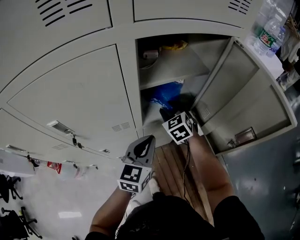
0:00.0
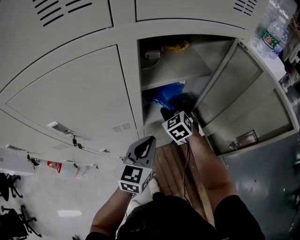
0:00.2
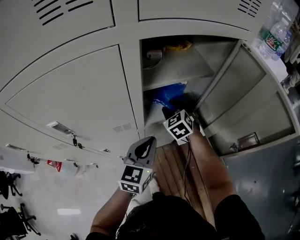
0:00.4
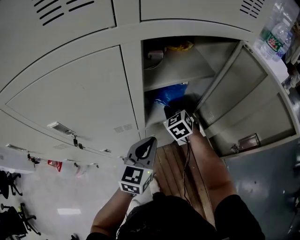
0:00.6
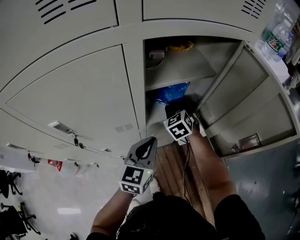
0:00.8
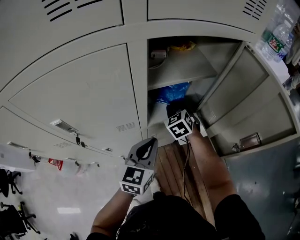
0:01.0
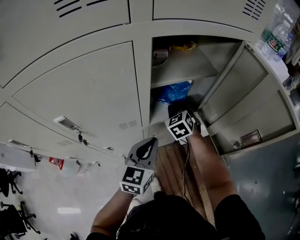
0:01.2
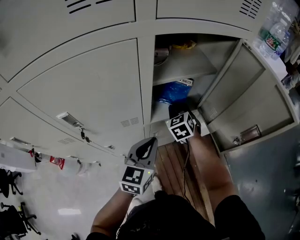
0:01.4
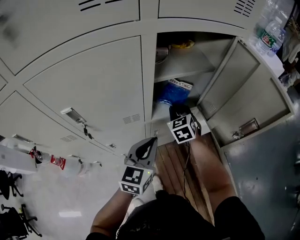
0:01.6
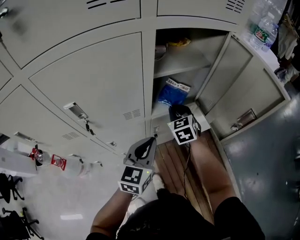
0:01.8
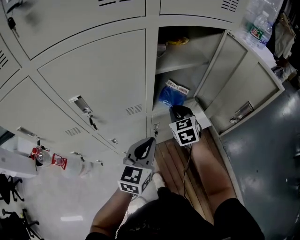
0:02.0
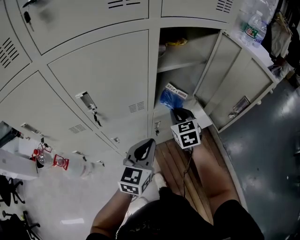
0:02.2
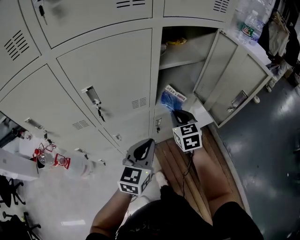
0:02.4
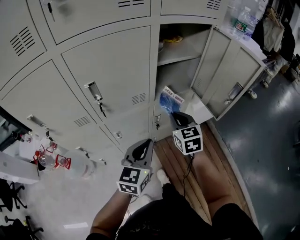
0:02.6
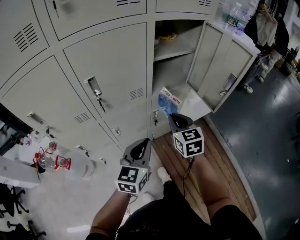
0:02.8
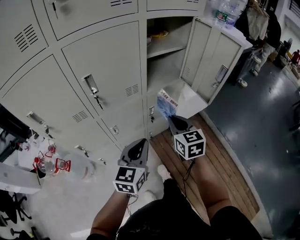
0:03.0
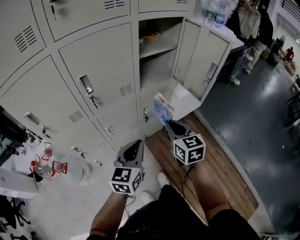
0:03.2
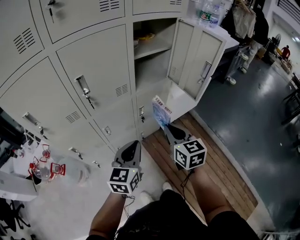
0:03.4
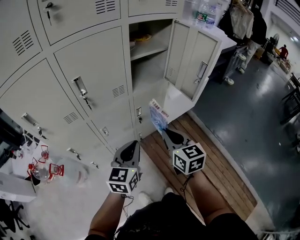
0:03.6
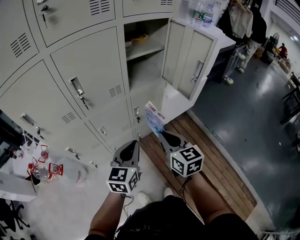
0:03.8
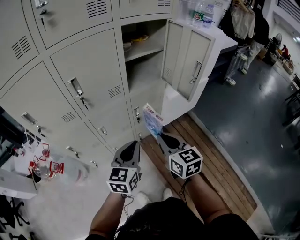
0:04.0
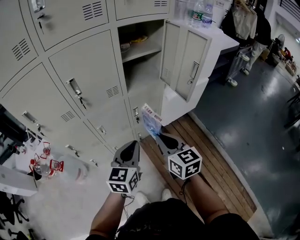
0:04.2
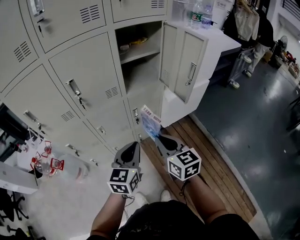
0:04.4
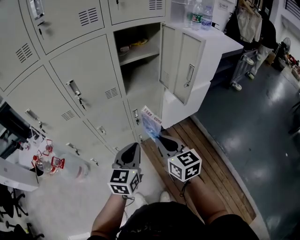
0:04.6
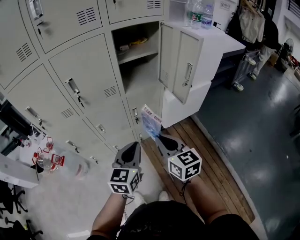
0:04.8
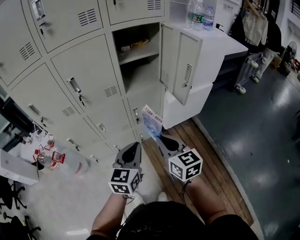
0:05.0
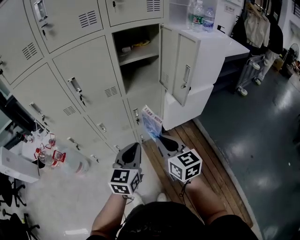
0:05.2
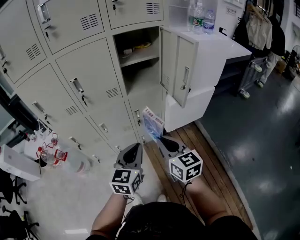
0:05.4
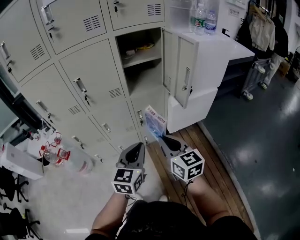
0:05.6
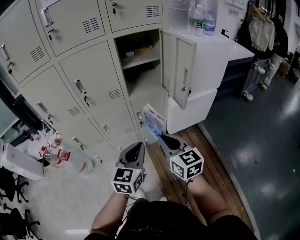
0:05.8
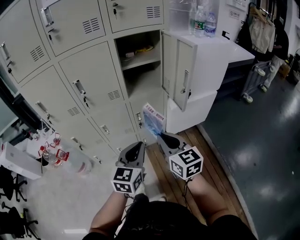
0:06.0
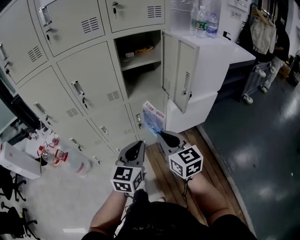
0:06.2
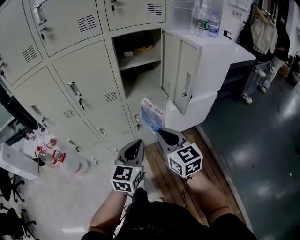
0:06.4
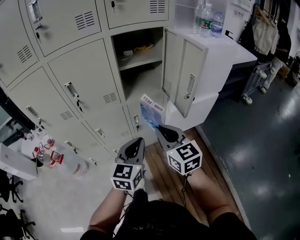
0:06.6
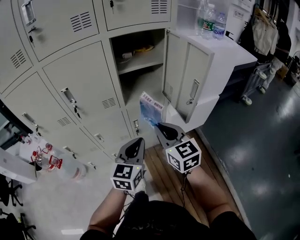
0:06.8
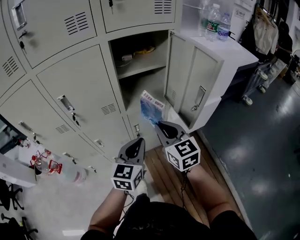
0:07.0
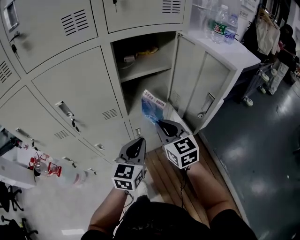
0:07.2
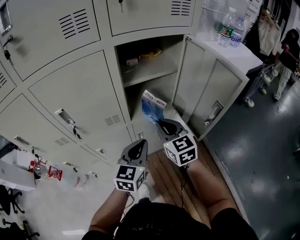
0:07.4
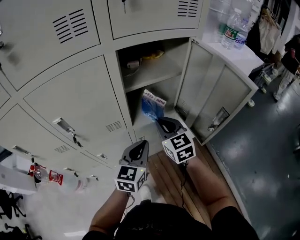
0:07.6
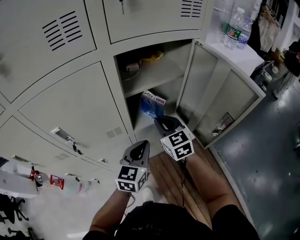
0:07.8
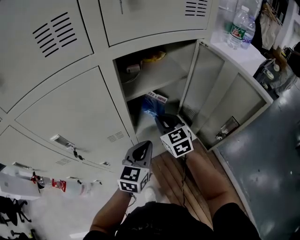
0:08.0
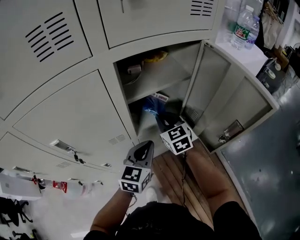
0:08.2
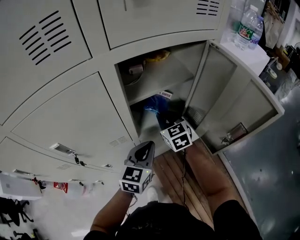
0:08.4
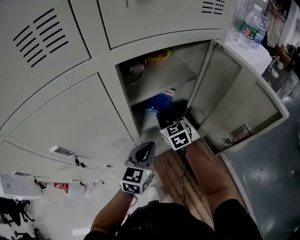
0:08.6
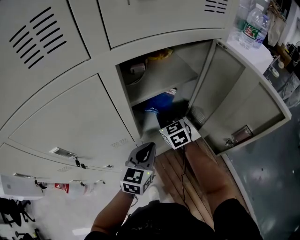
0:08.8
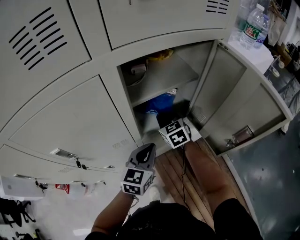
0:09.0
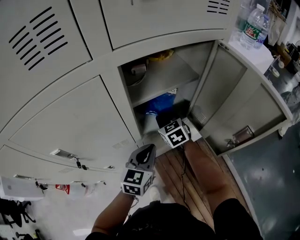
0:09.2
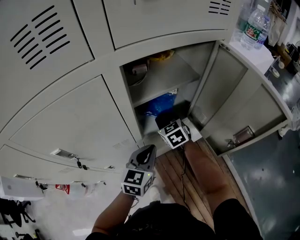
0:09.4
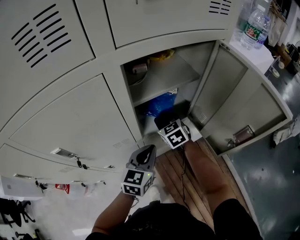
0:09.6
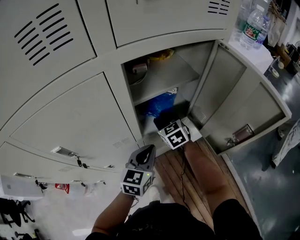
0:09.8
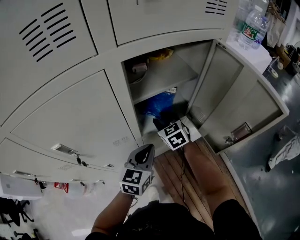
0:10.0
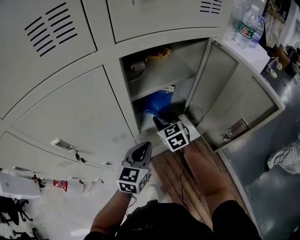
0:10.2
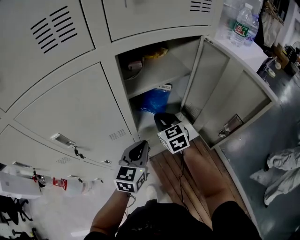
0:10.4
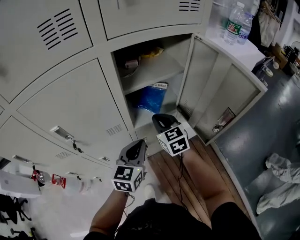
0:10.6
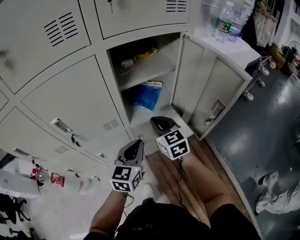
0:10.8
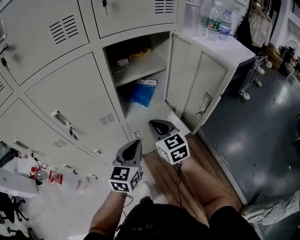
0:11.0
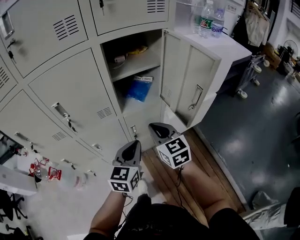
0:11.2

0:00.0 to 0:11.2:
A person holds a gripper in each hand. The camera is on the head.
0:00.0 to 0:01.6: The left gripper ends up about 5 cm from where it was. The right gripper closes up.
0:01.6 to 0:03.2: Both grippers travel together backward, about 30 cm. The right gripper changes its angle by approximately 30 degrees.
0:03.2 to 0:04.8: The left gripper moves to the right, approximately 10 cm, while the right gripper shifts about 10 cm backward and to the right.
0:04.8 to 0:06.4: The right gripper moves about 5 cm; the left gripper moves to the right, some 5 cm.
0:06.4 to 0:08.0: The grippers both shift forward by about 30 cm.
0:08.0 to 0:09.6: The right gripper travels downward and forward by some 10 cm, and opens up.
0:09.6 to 0:11.2: The right gripper heads backward and upward, covering about 30 cm, and closes up. The left gripper goes some 15 cm backward.

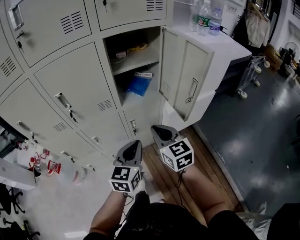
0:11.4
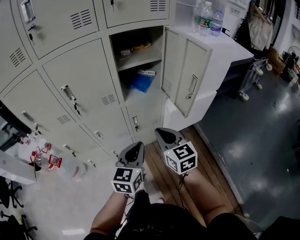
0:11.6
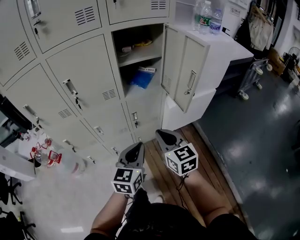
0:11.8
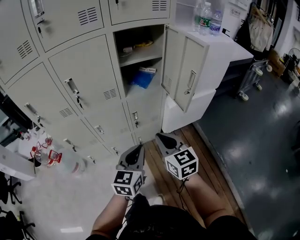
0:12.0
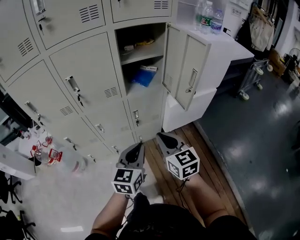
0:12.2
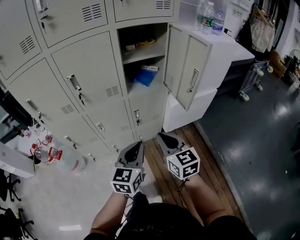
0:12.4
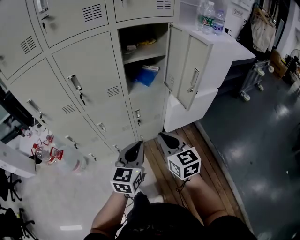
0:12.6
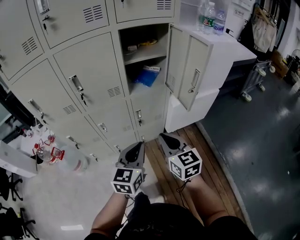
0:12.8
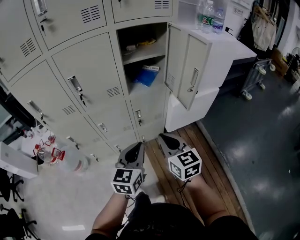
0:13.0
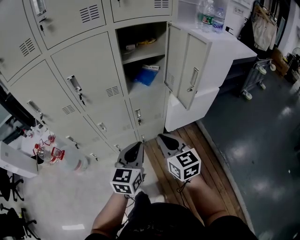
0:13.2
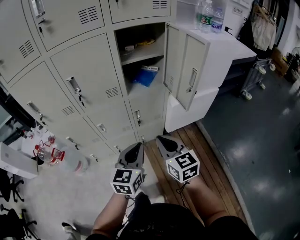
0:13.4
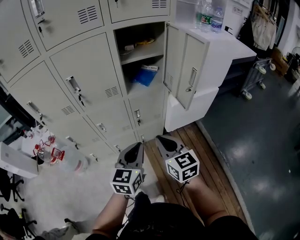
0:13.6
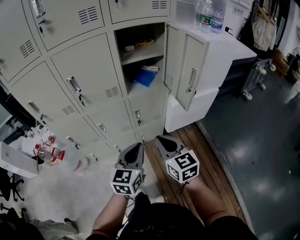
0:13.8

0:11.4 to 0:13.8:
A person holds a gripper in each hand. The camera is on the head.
0:11.4 to 0:12.6: Both grippers move backward, approximately 10 cm.
0:12.6 to 0:13.8: Both grippers stay about where they are.

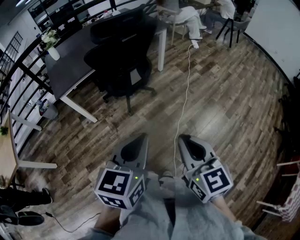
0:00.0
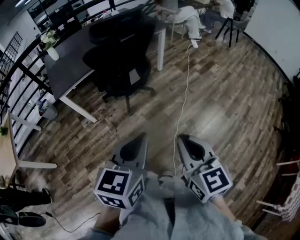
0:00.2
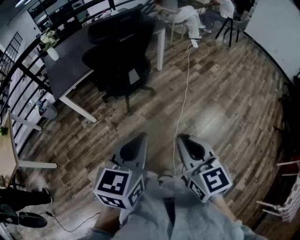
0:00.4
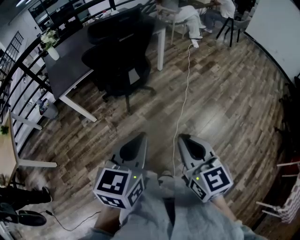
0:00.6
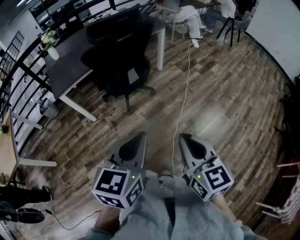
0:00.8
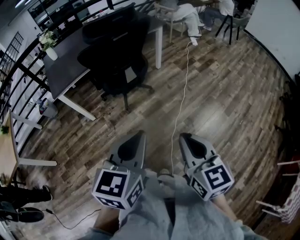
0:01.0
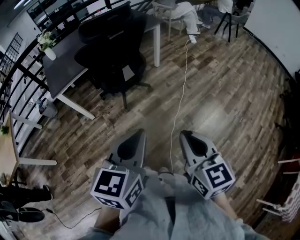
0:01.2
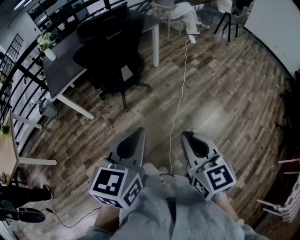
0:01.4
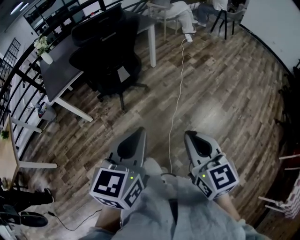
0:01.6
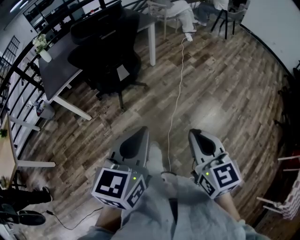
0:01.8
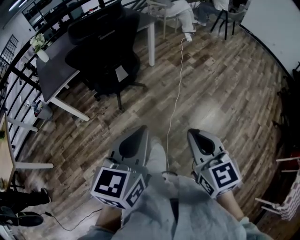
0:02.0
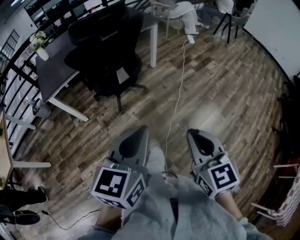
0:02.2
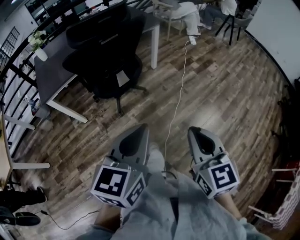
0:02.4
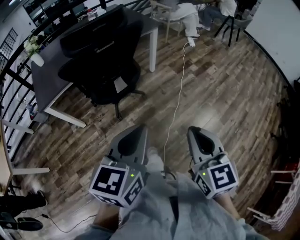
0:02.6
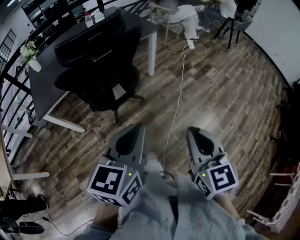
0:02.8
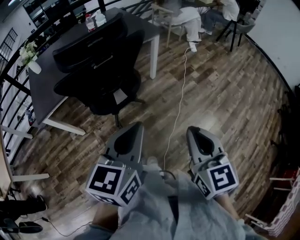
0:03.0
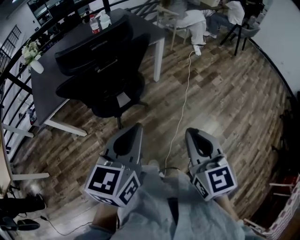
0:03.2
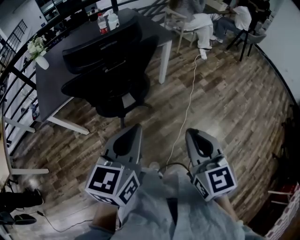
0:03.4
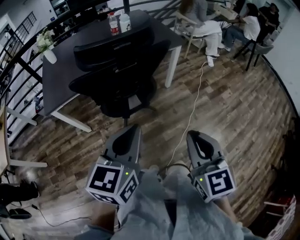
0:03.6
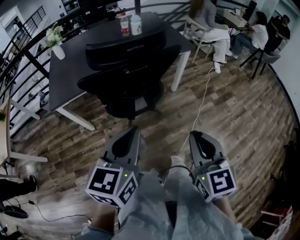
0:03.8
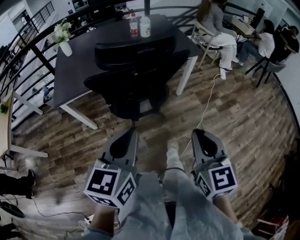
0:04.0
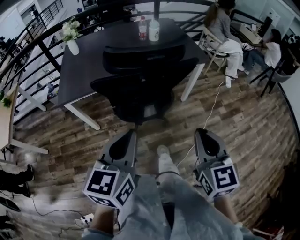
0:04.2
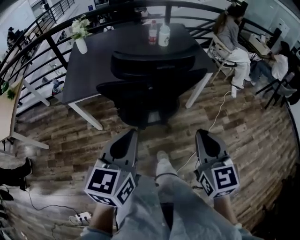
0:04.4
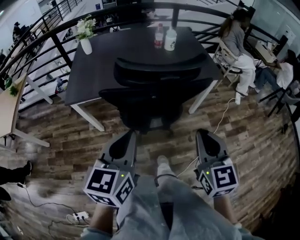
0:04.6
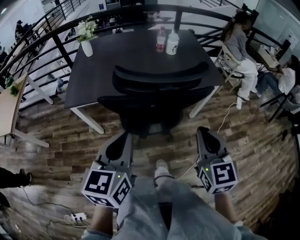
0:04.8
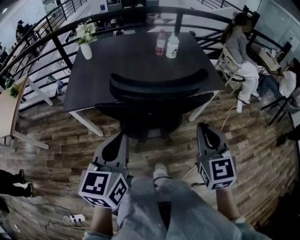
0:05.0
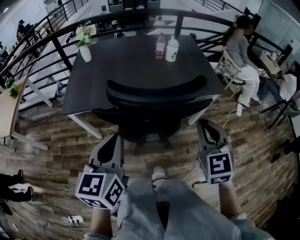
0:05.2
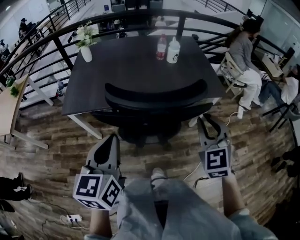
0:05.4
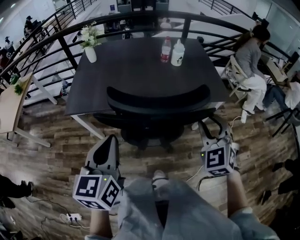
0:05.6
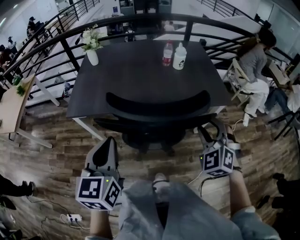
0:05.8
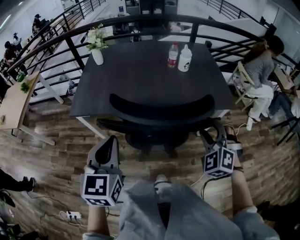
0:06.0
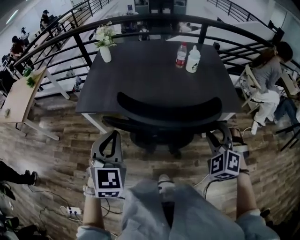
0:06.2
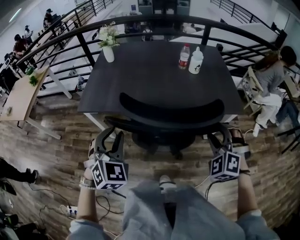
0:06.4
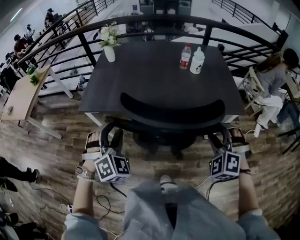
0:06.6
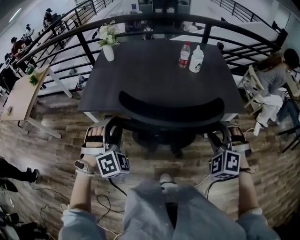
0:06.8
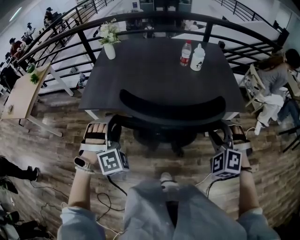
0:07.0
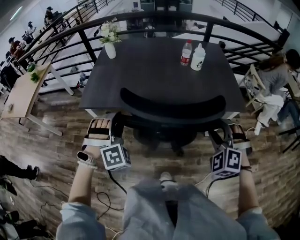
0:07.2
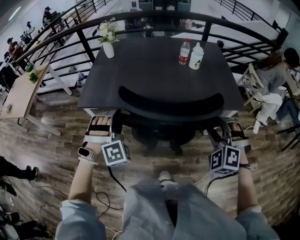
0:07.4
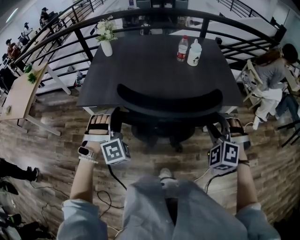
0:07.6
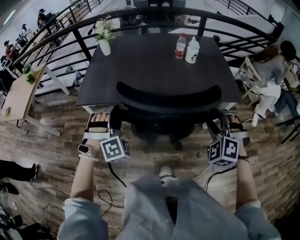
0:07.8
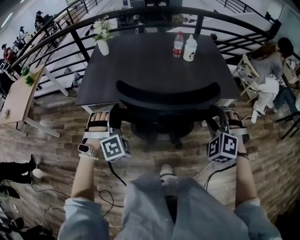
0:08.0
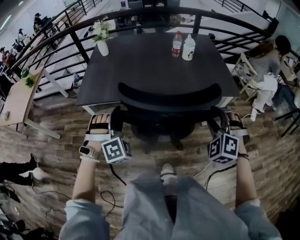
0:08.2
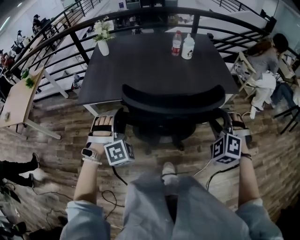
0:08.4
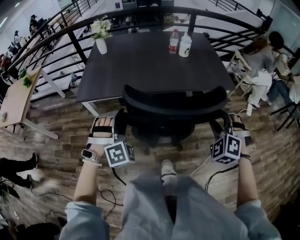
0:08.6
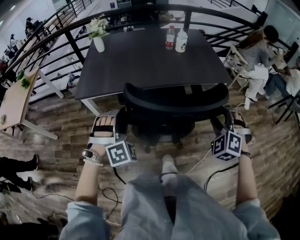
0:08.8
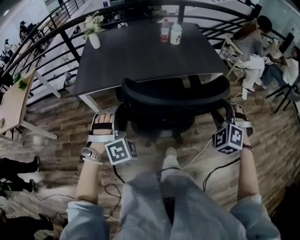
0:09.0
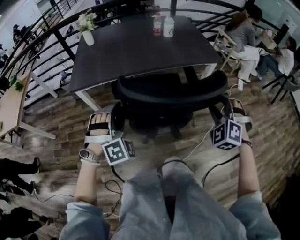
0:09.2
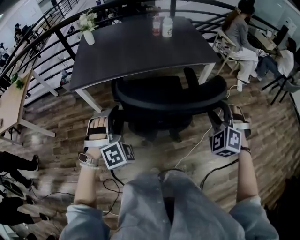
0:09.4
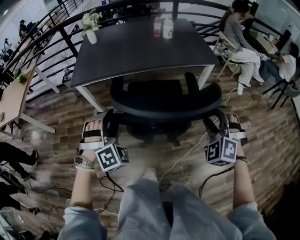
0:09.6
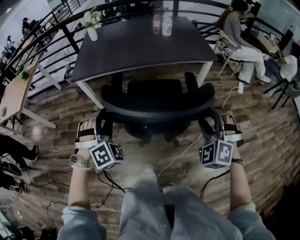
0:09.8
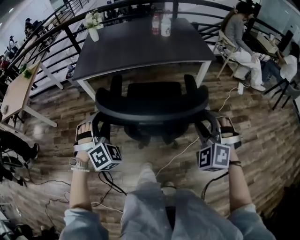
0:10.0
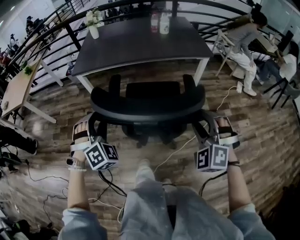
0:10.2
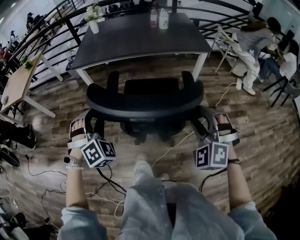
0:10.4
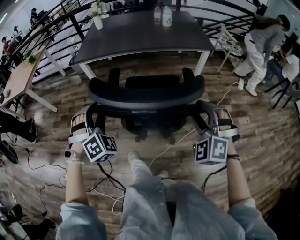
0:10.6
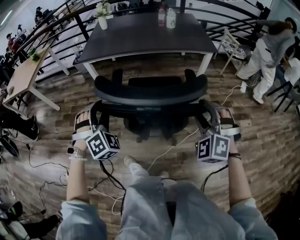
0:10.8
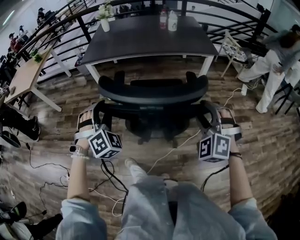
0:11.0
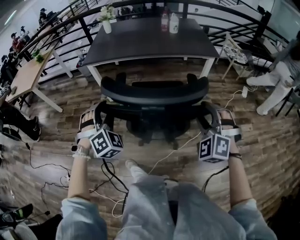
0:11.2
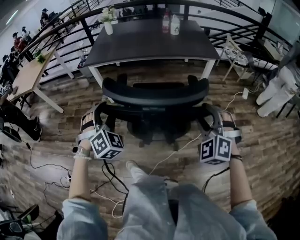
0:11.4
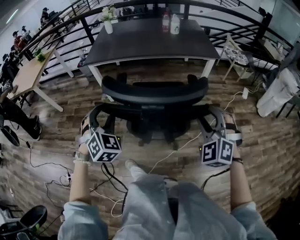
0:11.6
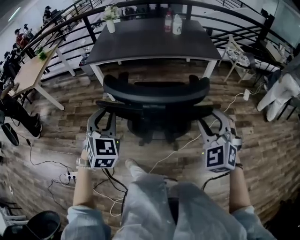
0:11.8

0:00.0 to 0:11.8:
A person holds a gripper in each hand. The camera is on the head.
0:00.0 to 0:01.4: Both grippers travel together to the right, about 10 cm.
0:01.4 to 0:03.0: Both grippers travel together forward, approximately 25 cm.
0:03.0 to 0:04.4: The left gripper is displaced to the left and forward by some 15 cm, and turns by some 30 degrees, while the right gripper goes about 20 cm forward and to the left, and changes its angle by roughly 20 degrees.
0:04.4 to 0:06.0: The right gripper goes roughly 25 cm forward, twists some 60 degrees counterclockwise, seen from behind, and opens its fingers, while the left gripper travels forward by roughly 15 cm, and turns by approximately 30 degrees.
0:06.0 to 0:07.4: The left gripper shifts about 15 cm downward and forward, rolls clockwise, seen from behind, by roughly 80 degrees, and opens up.
0:07.4 to 0:08.8: Both grippers travel together backward, about 10 cm.
0:08.8 to 0:10.4: The two grippers go approximately 25 cm backward.
0:10.4 to 0:11.8: The left gripper shifts by roughly 5 cm, turns by about 40 degrees, and closes. Meanwhile the right gripper turns by some 20 degrees.
